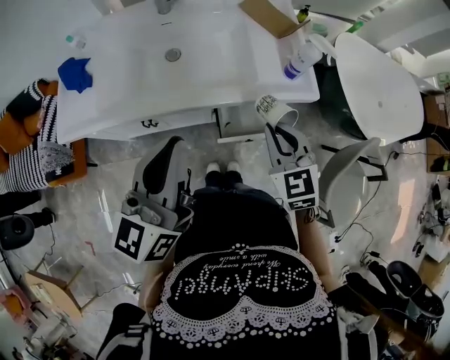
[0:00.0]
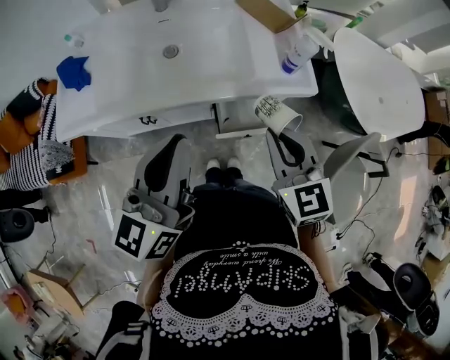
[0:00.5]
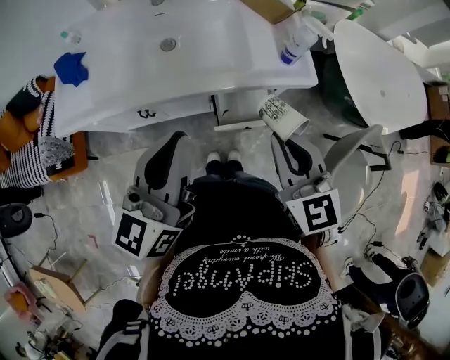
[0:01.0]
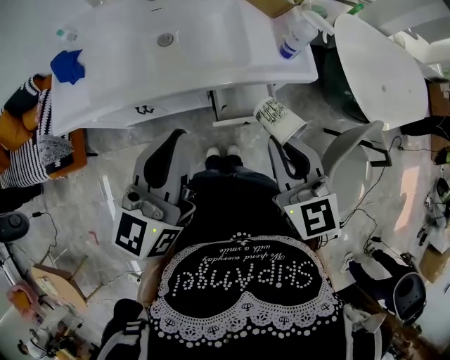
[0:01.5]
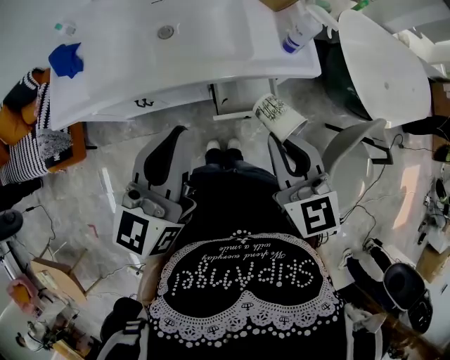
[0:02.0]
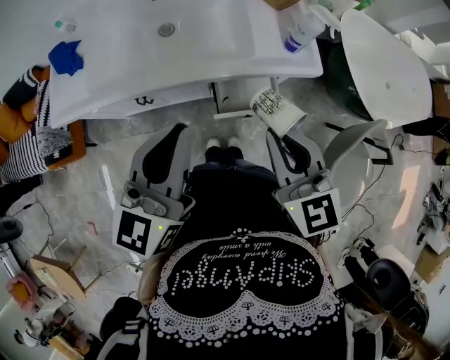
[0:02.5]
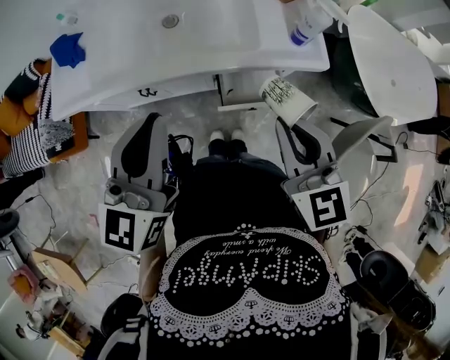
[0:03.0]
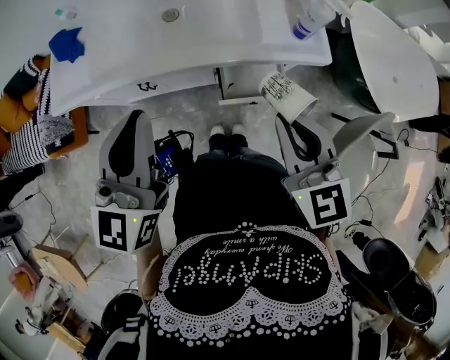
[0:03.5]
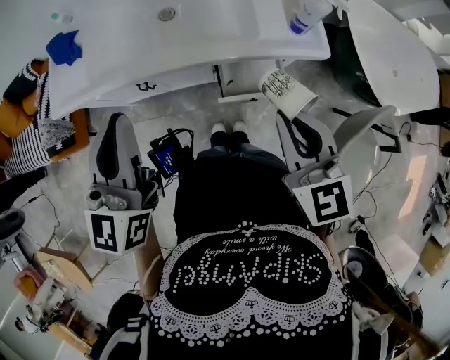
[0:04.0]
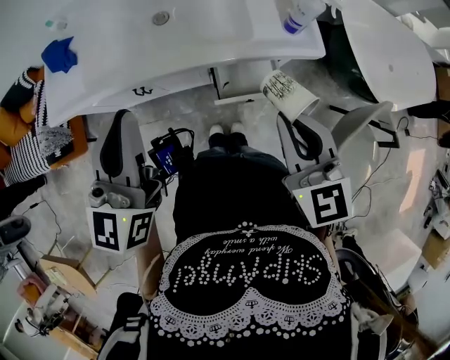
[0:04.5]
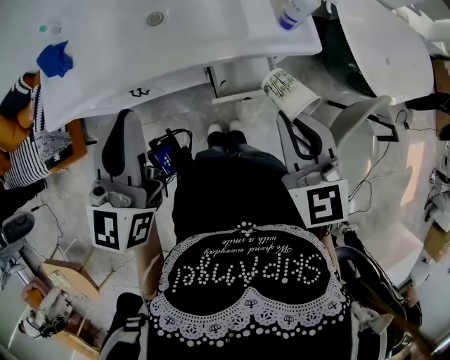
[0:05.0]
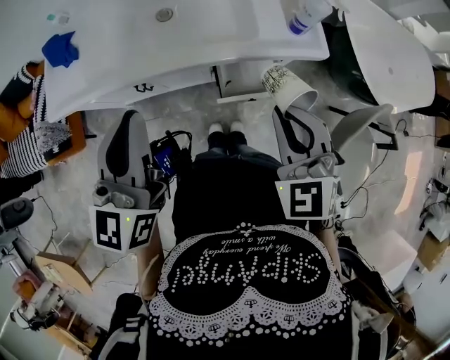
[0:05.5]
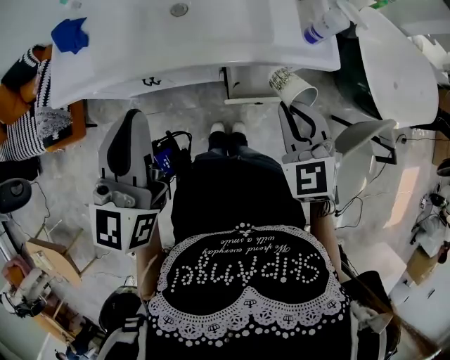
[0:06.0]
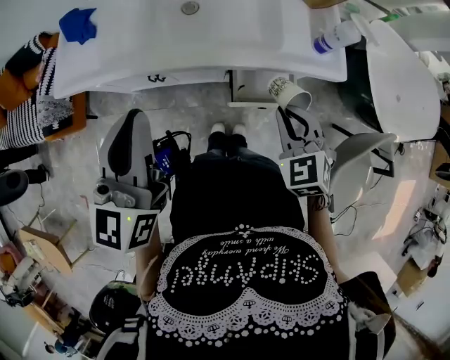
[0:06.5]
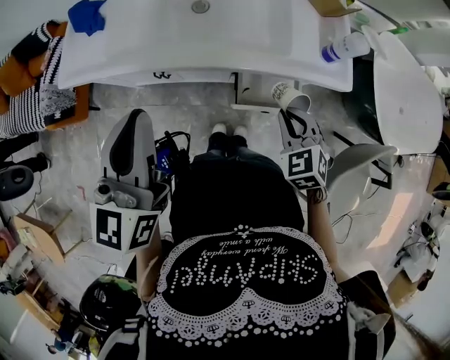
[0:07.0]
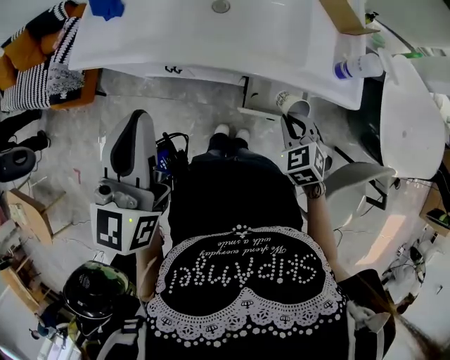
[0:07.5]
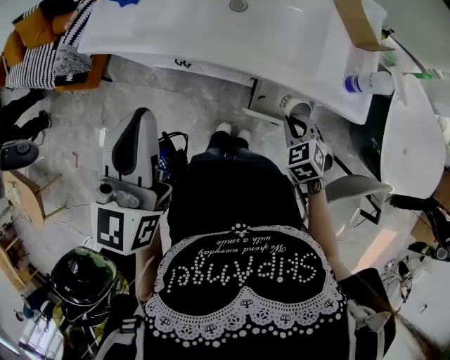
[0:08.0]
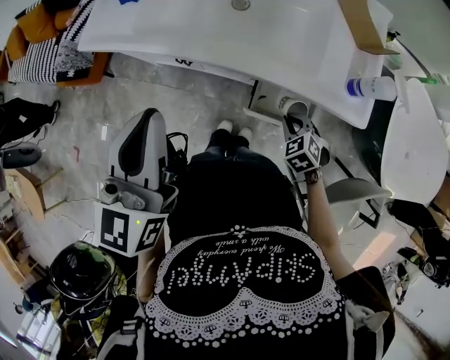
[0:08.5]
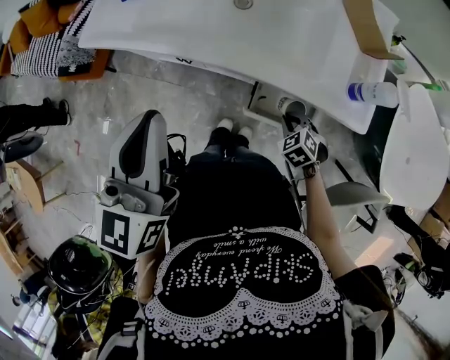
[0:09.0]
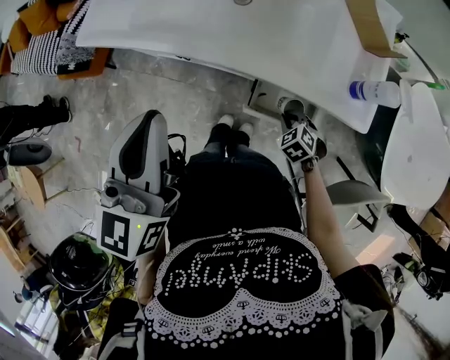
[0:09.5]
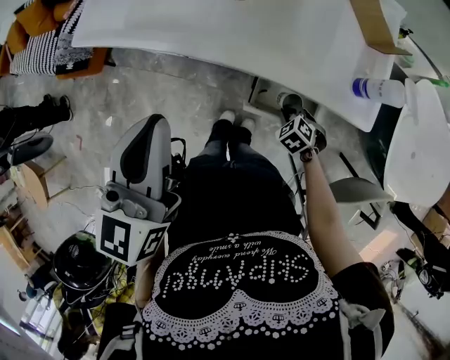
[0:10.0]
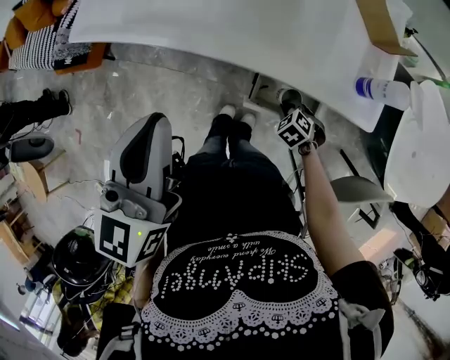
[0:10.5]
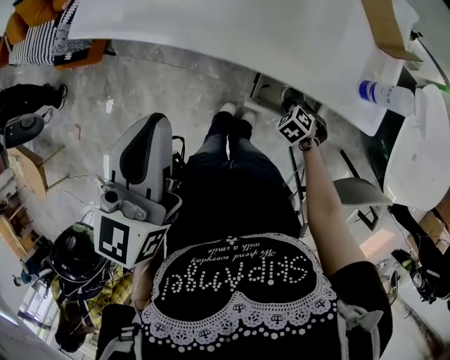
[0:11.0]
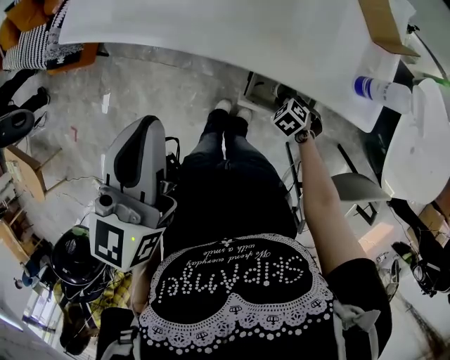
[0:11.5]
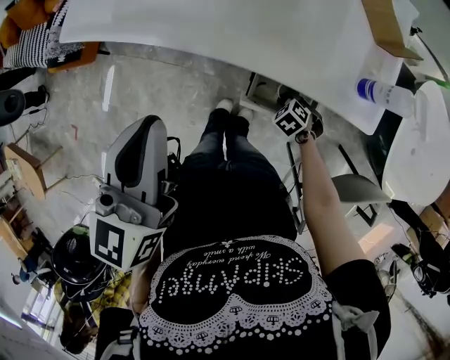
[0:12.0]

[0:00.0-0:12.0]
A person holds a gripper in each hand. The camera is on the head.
0:00.0 to 0:02.0: The right gripper travels upward and backward by roughly 10 cm.
0:02.0 to 0:04.0: The left gripper shifts approximately 10 cm to the left.
0:04.0 to 0:06.0: The right gripper travels downward by approximately 5 cm, and rotates roughly 30 degrees.
0:06.0 to 0:08.0: The right gripper goes roughly 20 cm downward, and swivels some 30 degrees.
0:08.0 to 0:10.0: The left gripper moves to the right, approximately 5 cm. Meanwhile the right gripper is displaced downward by some 15 cm.
0:10.0 to 0:12.0: The right gripper changes place by some 5 cm.

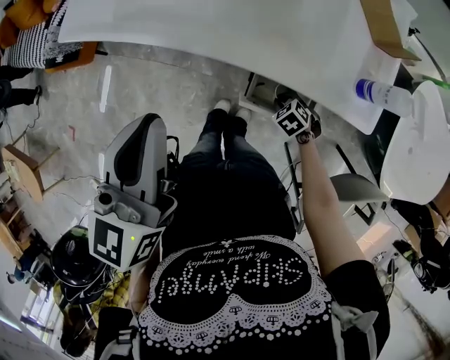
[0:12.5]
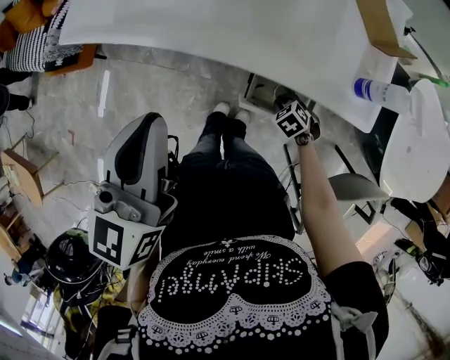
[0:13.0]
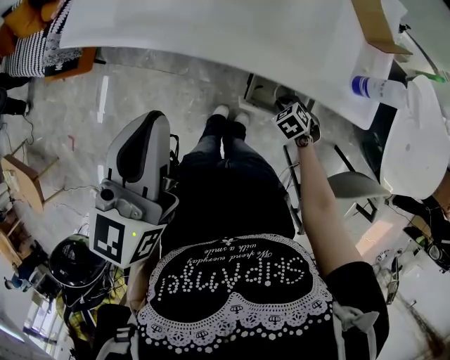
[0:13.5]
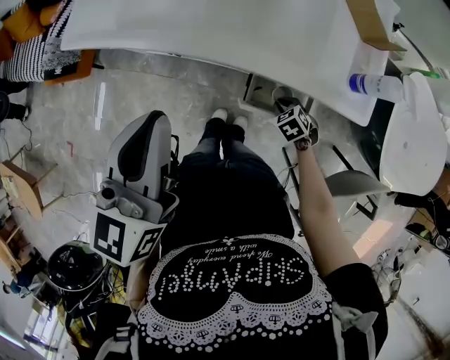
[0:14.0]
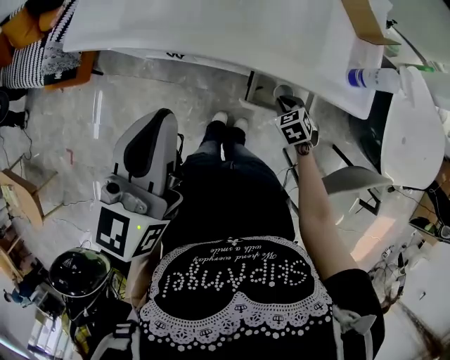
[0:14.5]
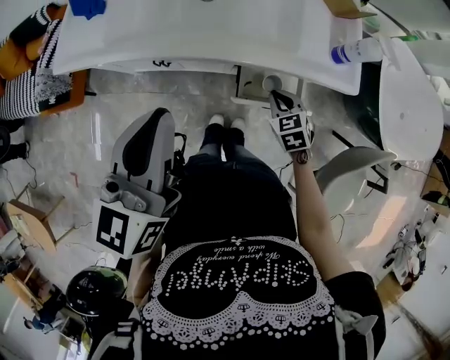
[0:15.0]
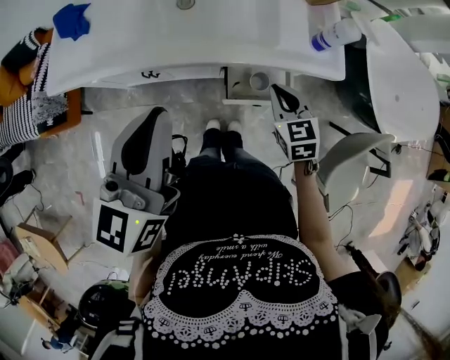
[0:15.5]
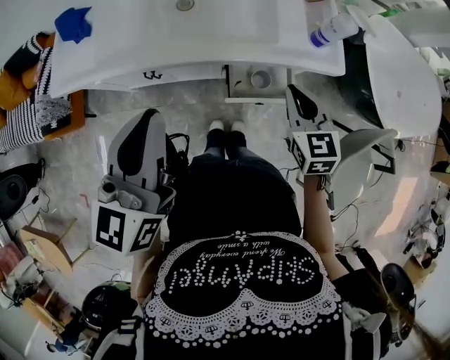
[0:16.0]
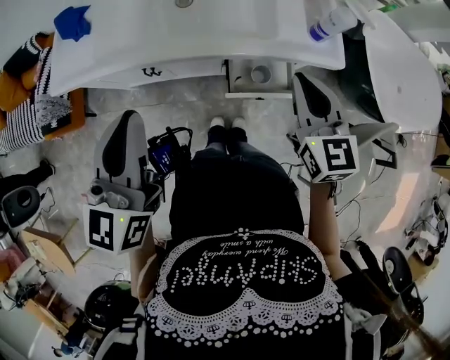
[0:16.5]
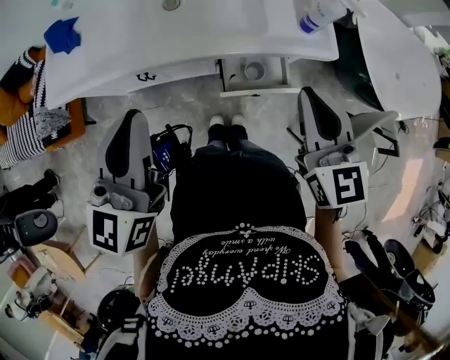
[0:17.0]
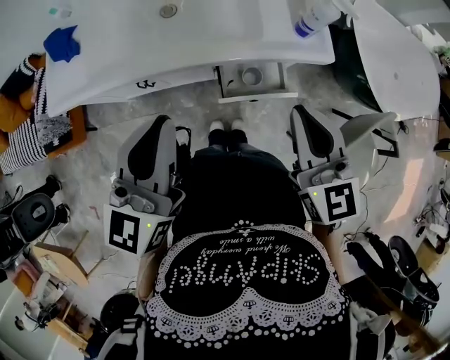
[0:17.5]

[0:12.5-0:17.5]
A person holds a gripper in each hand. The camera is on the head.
0:12.5 to 0:15.0: The right gripper goes roughly 15 cm upward, and turns by some 40 degrees.
0:15.0 to 0:17.5: The right gripper goes some 30 cm upward, and angles its fingers upward, by roughly 40 degrees.

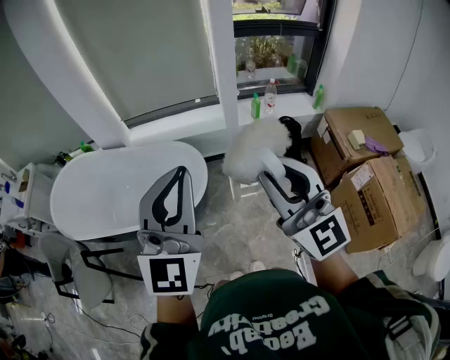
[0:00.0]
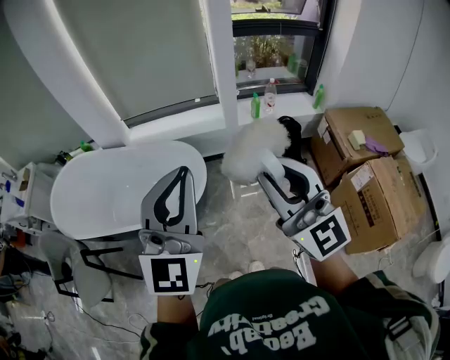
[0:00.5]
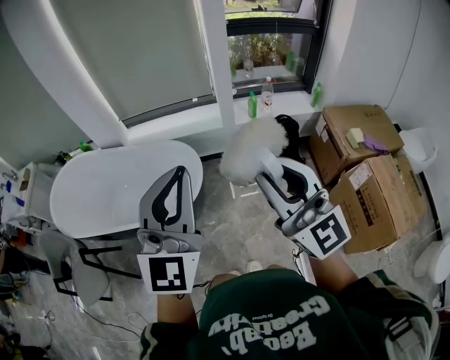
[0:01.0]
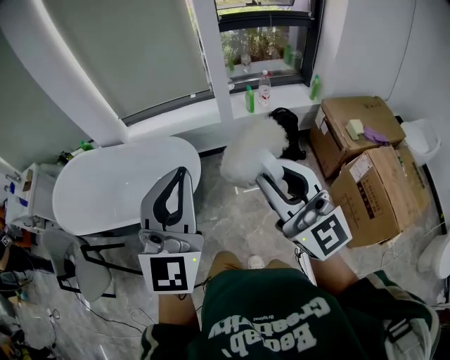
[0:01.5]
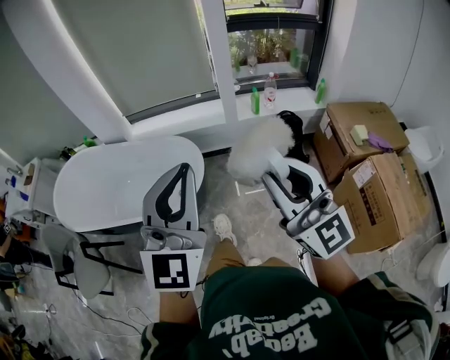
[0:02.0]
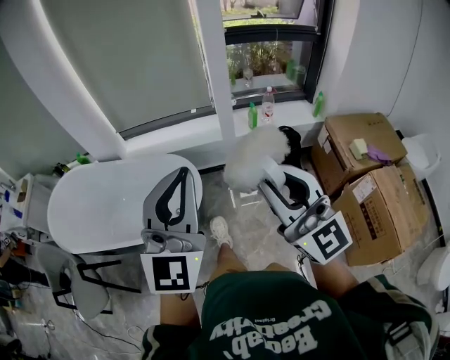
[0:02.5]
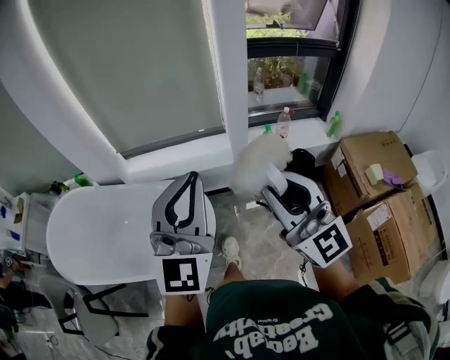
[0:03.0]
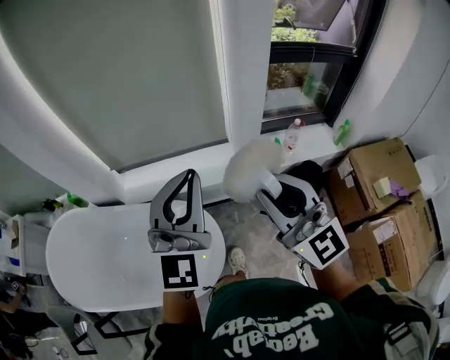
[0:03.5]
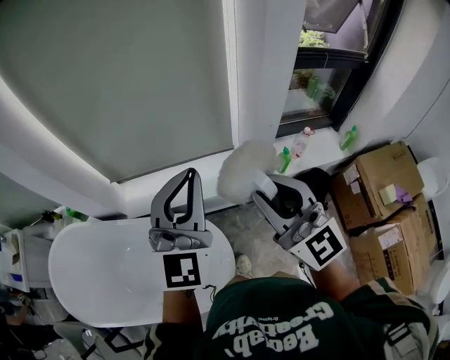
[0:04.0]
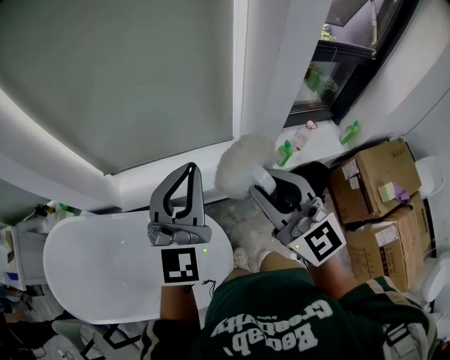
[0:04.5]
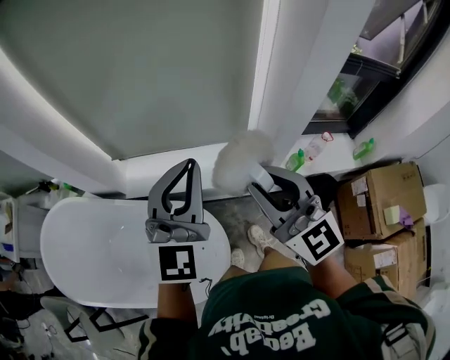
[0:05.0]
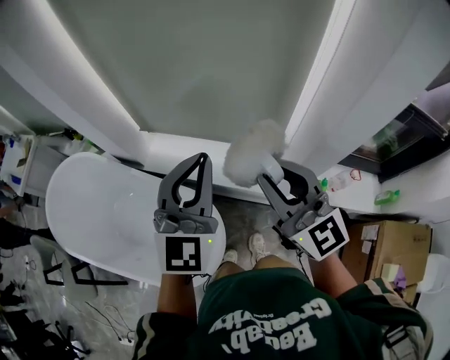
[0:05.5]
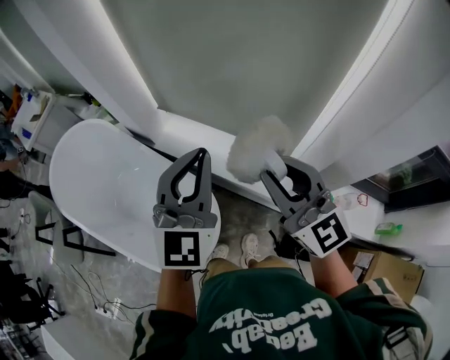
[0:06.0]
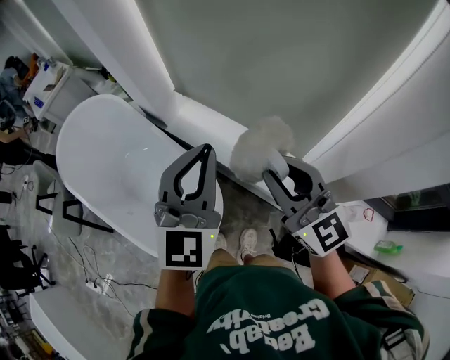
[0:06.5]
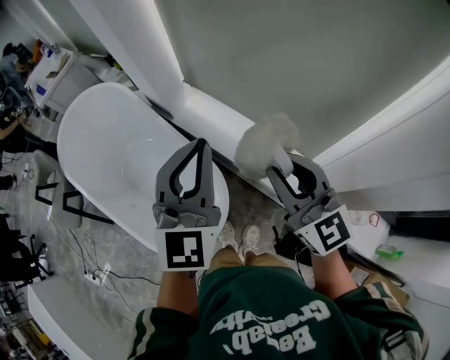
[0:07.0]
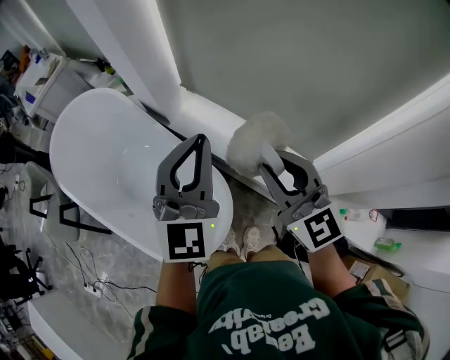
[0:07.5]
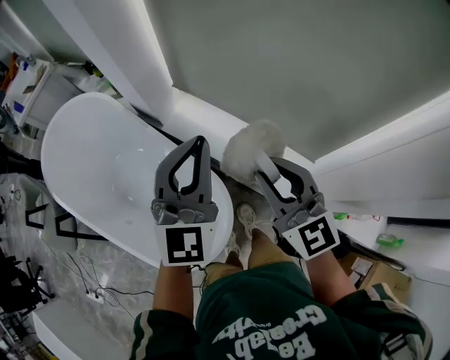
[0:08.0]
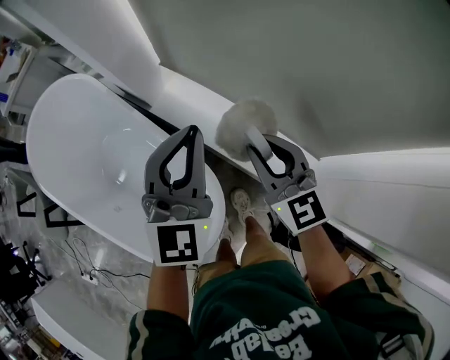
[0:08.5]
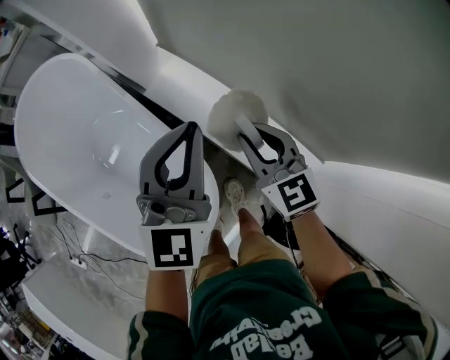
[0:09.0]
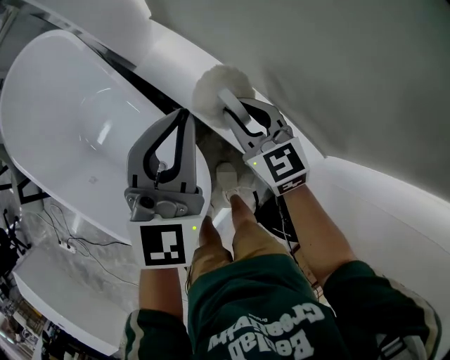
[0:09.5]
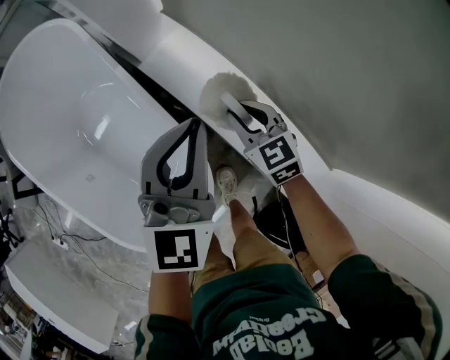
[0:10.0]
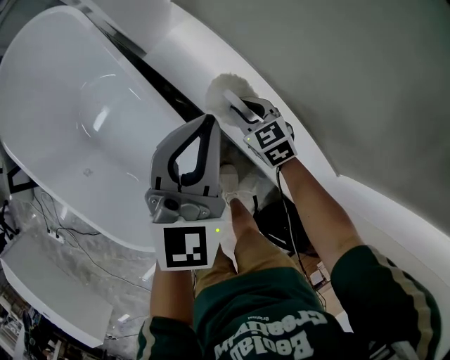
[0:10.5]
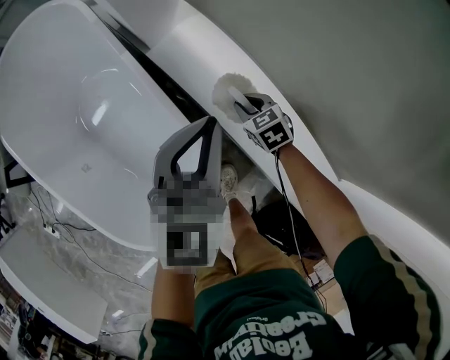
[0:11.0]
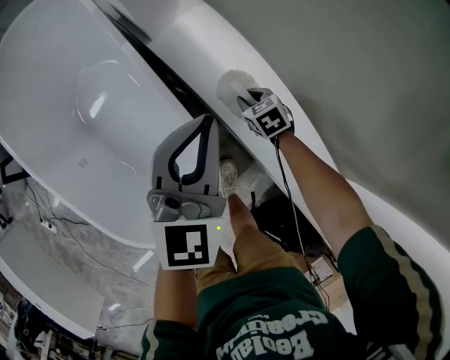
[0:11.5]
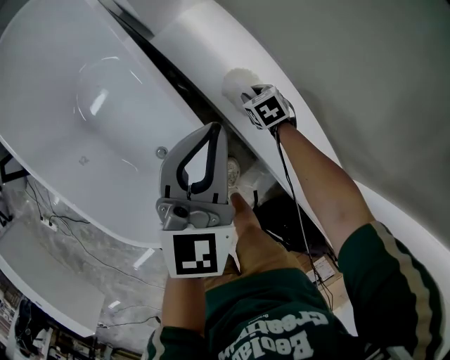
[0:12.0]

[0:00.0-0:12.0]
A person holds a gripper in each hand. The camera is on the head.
0:00.0 to 0:02.0: The two grippers go roughly 5 cm to the right.
0:02.0 to 0:04.0: The pair of grippers is taken forward, approximately 60 cm.
0:04.0 to 0:06.0: The right gripper shifts by roughly 15 cm, and swivels approximately 40 degrees; the left gripper ends up roughly 10 cm from where it was, and turns by roughly 40 degrees.
0:06.0 to 0:08.0: The two grippers go about 15 cm forward, to the left and downward.
0:08.0 to 0:10.0: The left gripper travels downward and forward by approximately 25 cm; the right gripper heads downward and forward, covering approximately 40 cm, and rotates about 30 degrees.
0:10.0 to 0:12.0: The right gripper heads downward, covering some 25 cm, and tips its fingers downward by approximately 30 degrees, while the left gripper travels downward by about 5 cm.
